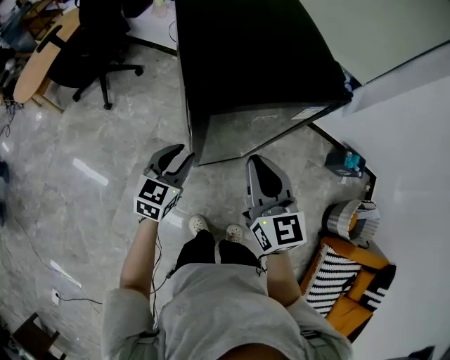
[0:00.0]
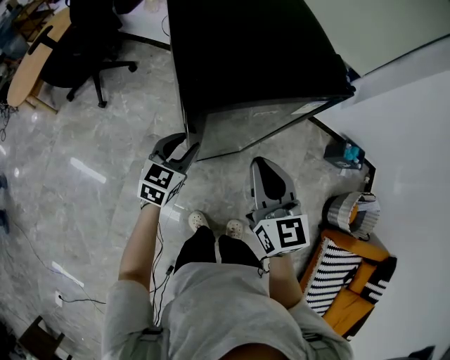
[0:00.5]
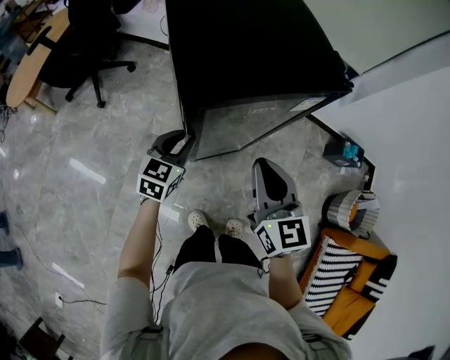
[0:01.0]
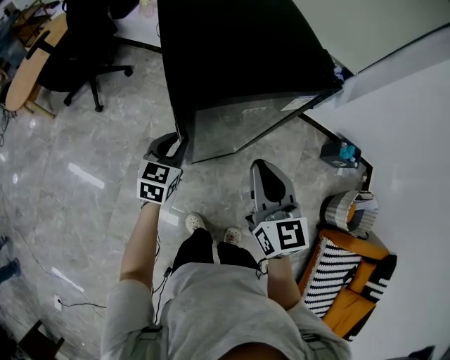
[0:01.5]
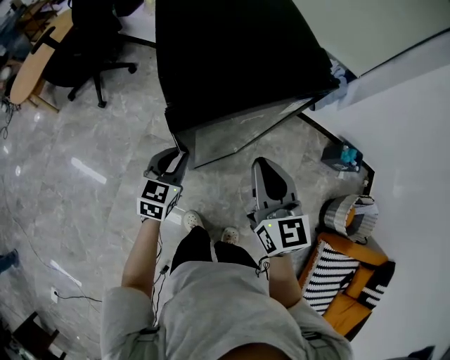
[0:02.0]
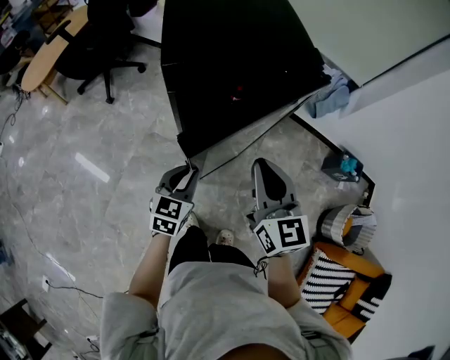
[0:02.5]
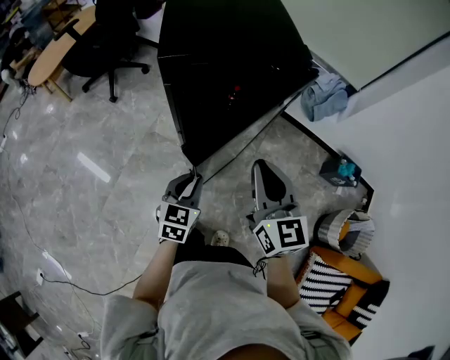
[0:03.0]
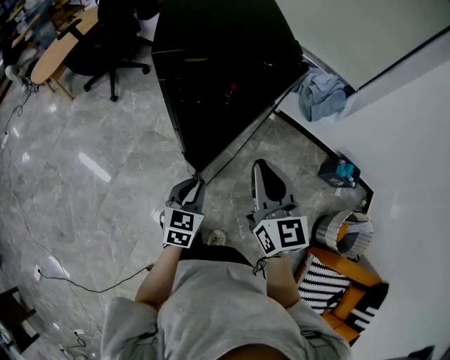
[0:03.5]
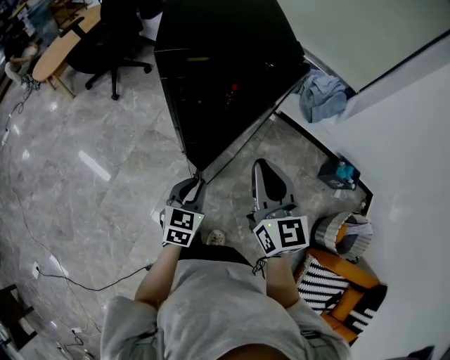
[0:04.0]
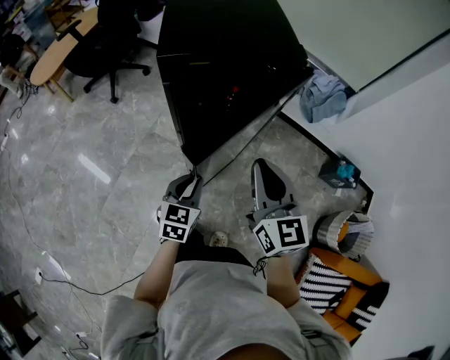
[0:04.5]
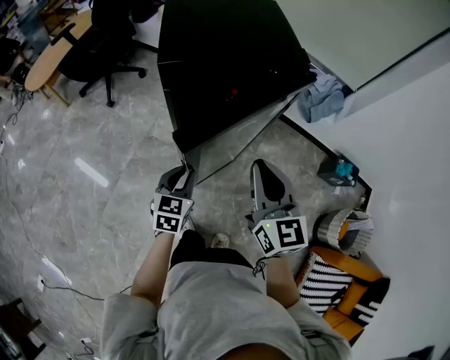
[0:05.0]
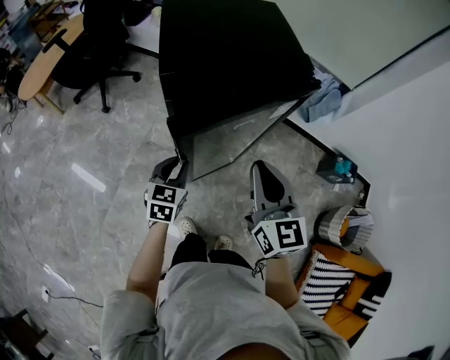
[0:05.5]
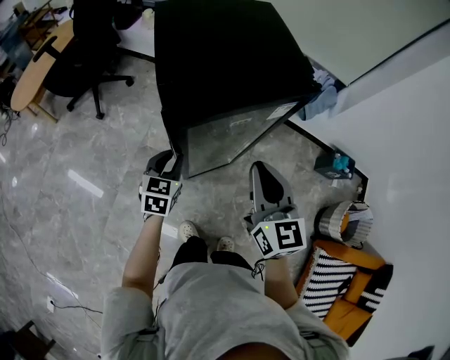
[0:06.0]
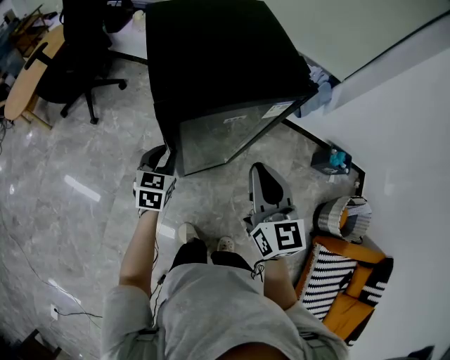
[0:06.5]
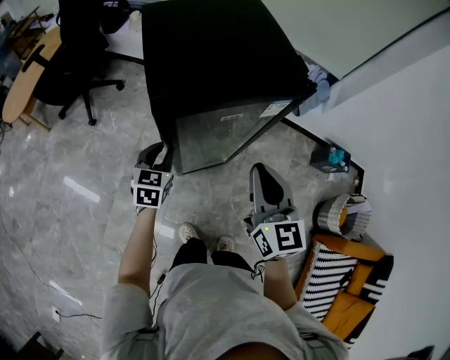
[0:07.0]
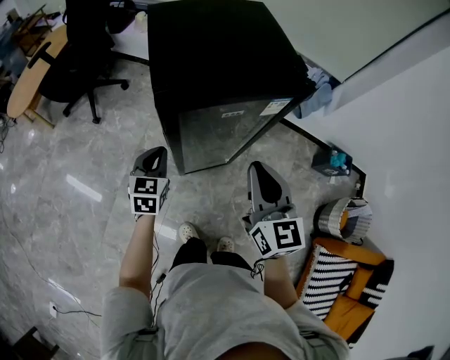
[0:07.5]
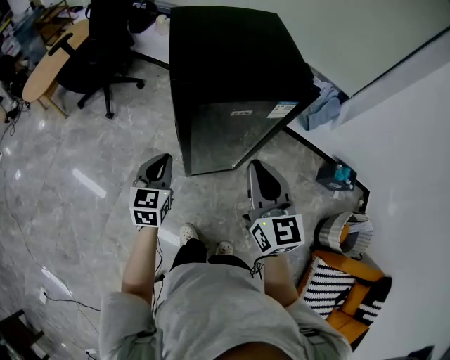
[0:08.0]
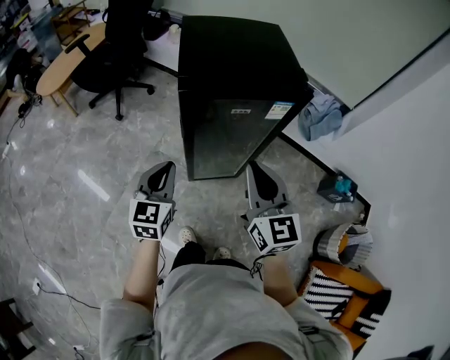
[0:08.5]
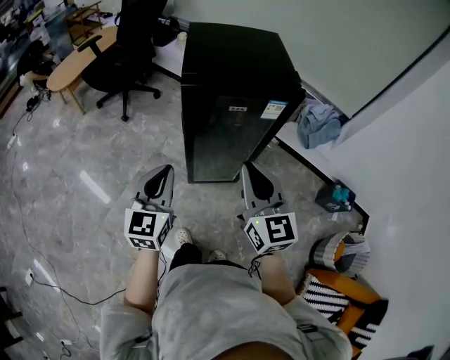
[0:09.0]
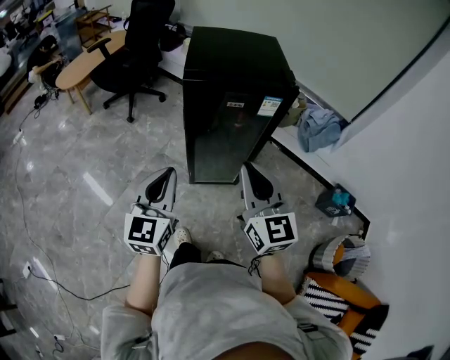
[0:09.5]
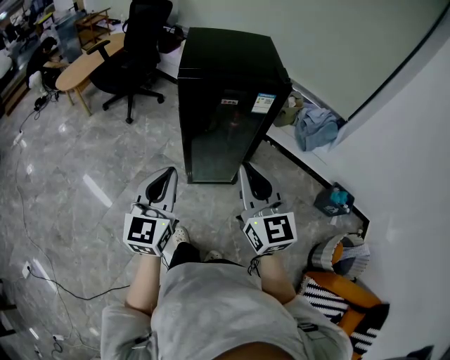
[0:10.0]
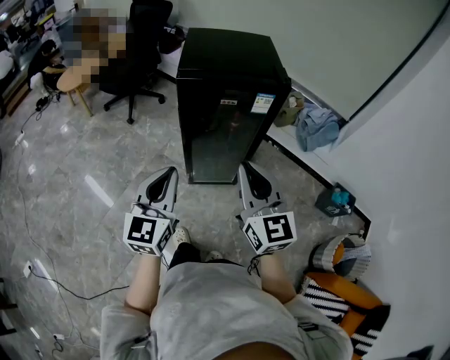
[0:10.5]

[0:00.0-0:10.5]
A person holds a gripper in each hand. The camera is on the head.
0:00.0 to 0:02.0: The left gripper moves about 5 cm. The right gripper shifts some 5 cm to the right.
0:02.0 to 0:04.0: The left gripper is displaced backward and to the right by roughly 20 cm. Meanwhile the right gripper goes roughly 10 cm backward and to the right.
0:04.0 to 0:06.5: The left gripper heads forward and to the left, covering some 25 cm. Meanwhile the right gripper moves forward and to the left, some 10 cm.
0:06.5 to 0:08.5: The left gripper goes about 20 cm backward and upward, and swivels about 20 degrees. The right gripper moves backward, roughly 5 cm.
0:08.5 to 0:10.5: The left gripper is displaced backward and upward by approximately 20 cm. The right gripper goes some 10 cm backward.

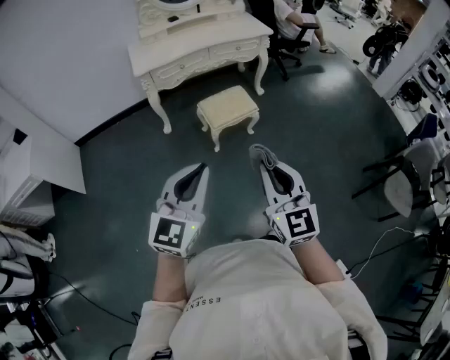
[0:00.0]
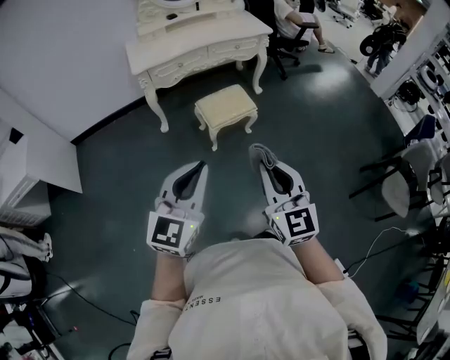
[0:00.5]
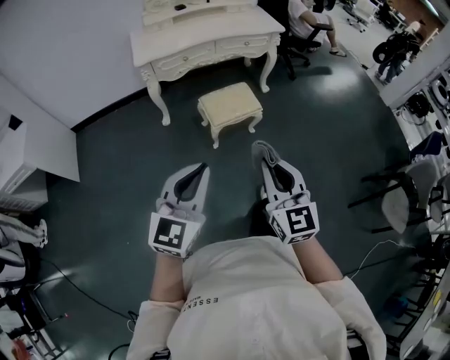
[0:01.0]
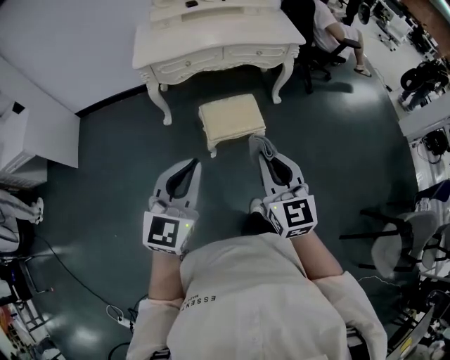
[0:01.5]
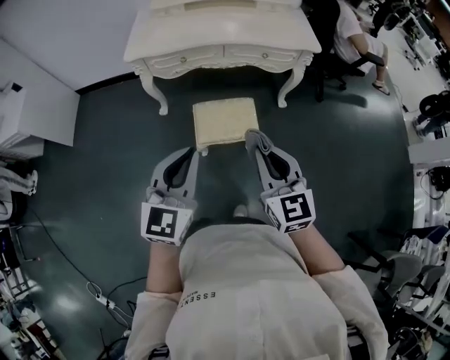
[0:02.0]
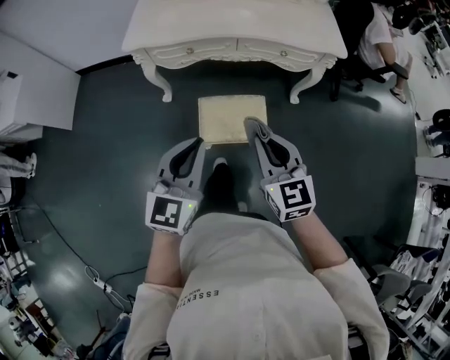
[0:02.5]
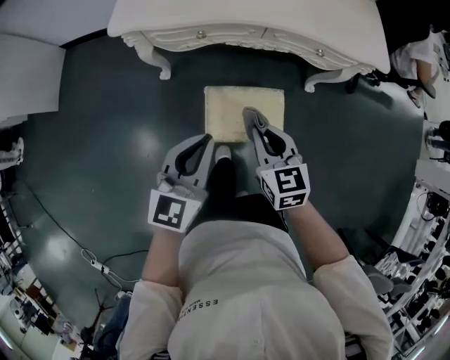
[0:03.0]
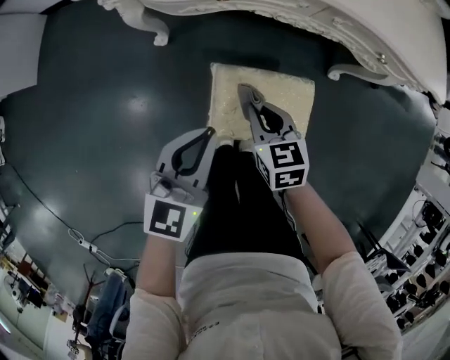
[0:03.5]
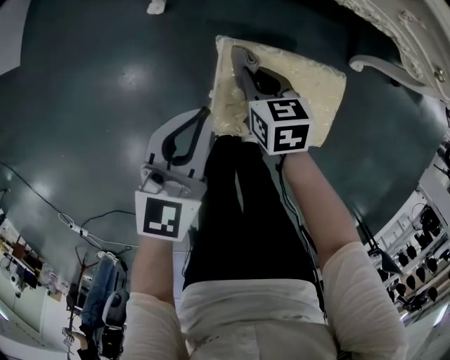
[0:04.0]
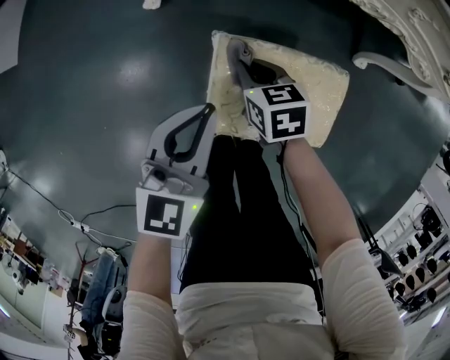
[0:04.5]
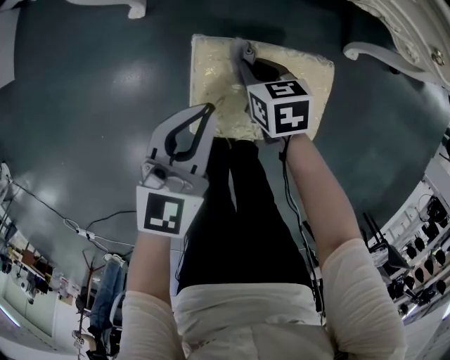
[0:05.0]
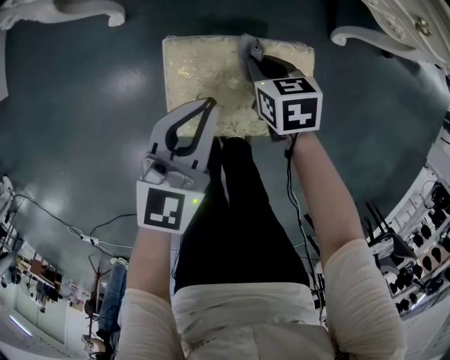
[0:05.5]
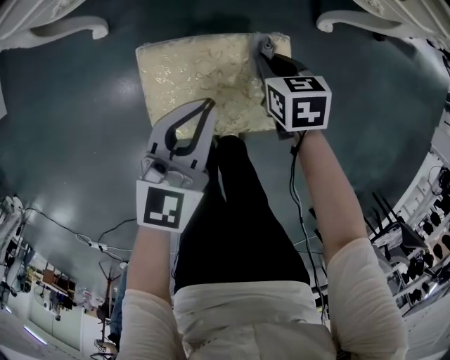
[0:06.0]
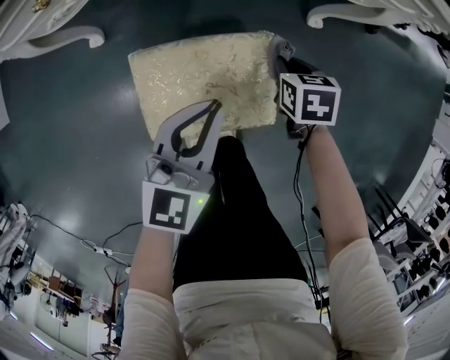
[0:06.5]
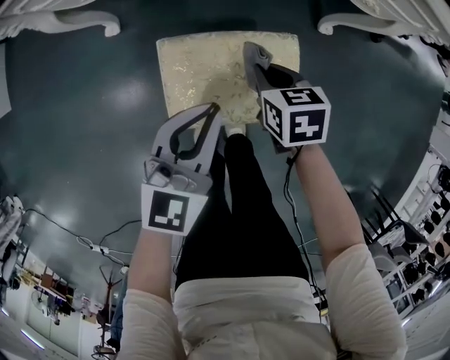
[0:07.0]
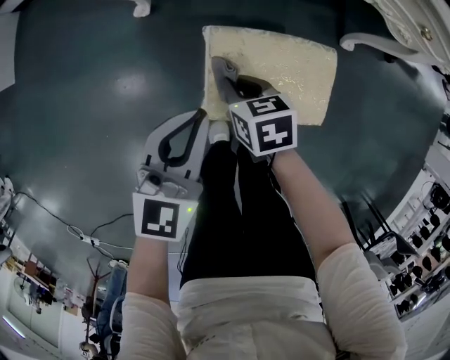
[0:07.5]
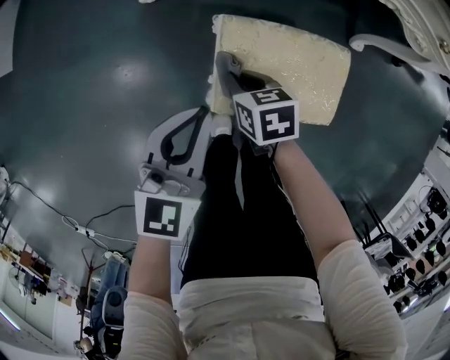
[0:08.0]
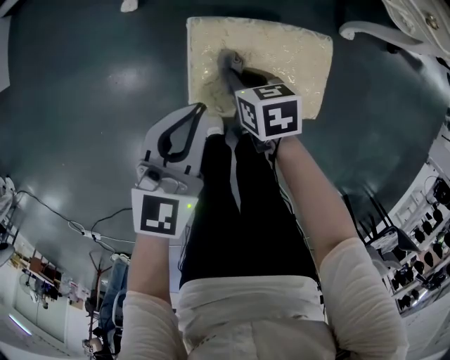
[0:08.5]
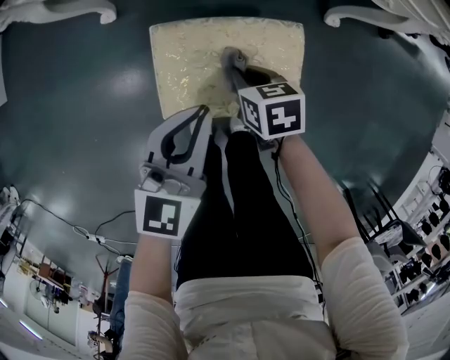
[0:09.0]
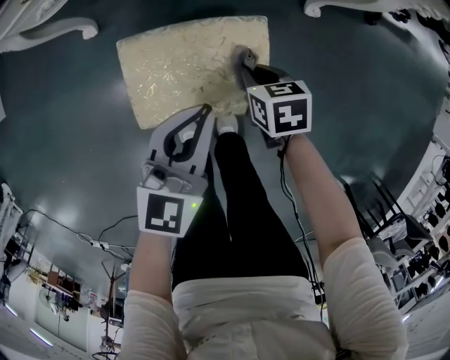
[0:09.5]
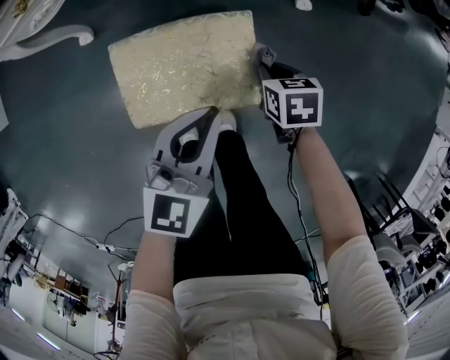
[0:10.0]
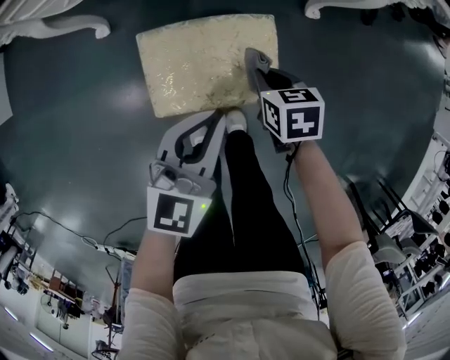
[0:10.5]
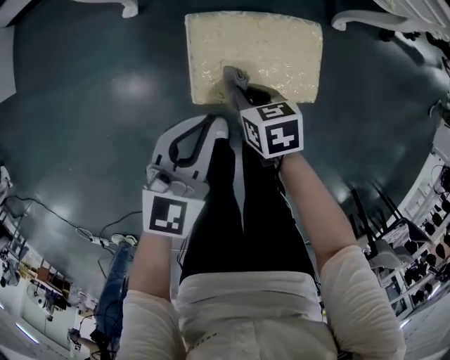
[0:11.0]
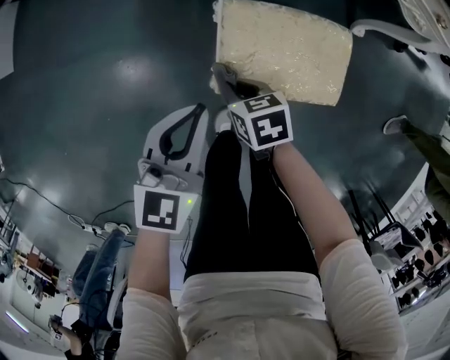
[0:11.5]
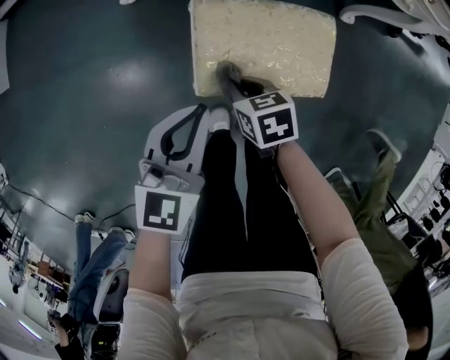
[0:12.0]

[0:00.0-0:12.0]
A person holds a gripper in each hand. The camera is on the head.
0:00.0 to 0:02.0: The grippers both shift forward by about 40 cm. The right gripper turns by roughly 20 degrees. Meanwhile the left gripper swivels roughly 20 degrees.
0:02.0 to 0:04.0: Both grippers travel together downward and forward, some 60 cm. The right gripper points its fingers roughly 40 degrees further downward.
0:04.0 to 0:06.0: The grippers both shift to the right by about 20 cm.
0:06.0 to 0:08.0: The left gripper shifts by approximately 20 cm, while the right gripper changes place by about 25 cm.
0:08.0 to 0:10.0: The grippers both shift to the right by some 30 cm.
0:10.0 to 0:12.0: Both grippers move to the left, some 25 cm.

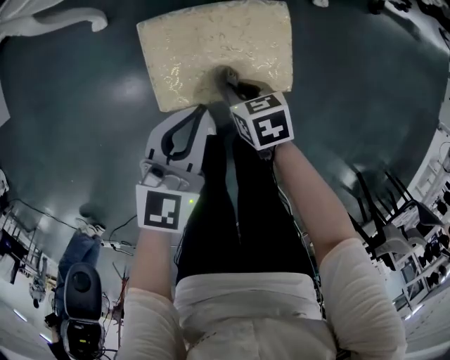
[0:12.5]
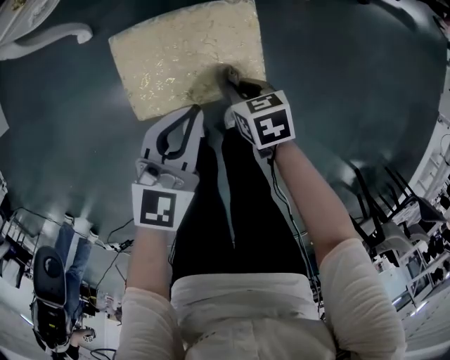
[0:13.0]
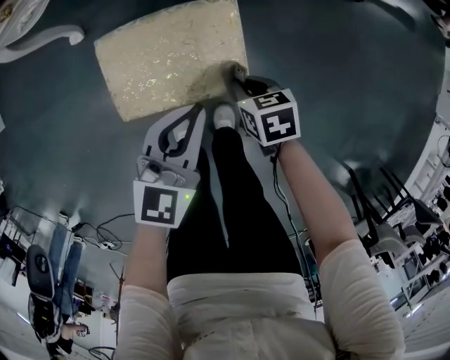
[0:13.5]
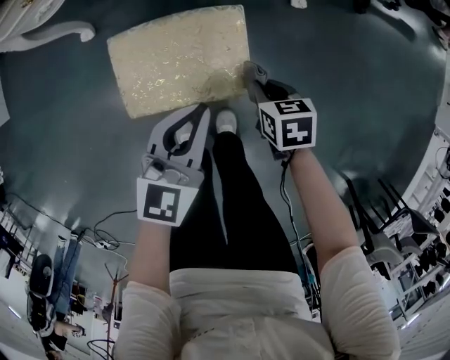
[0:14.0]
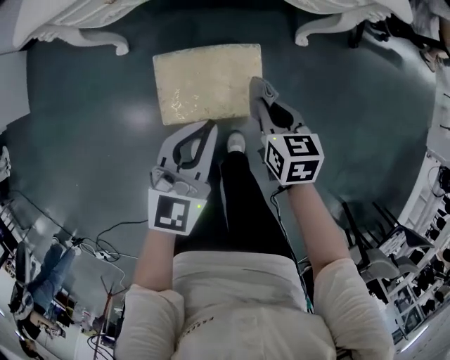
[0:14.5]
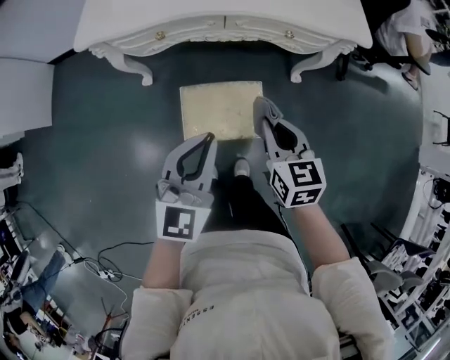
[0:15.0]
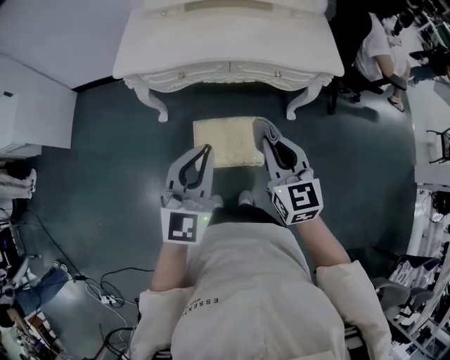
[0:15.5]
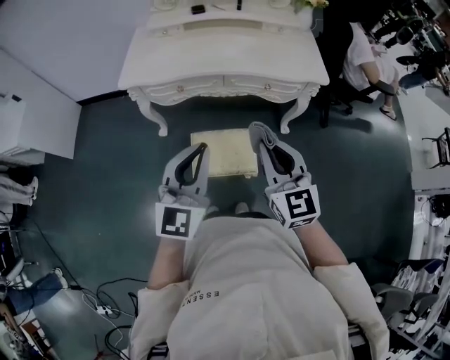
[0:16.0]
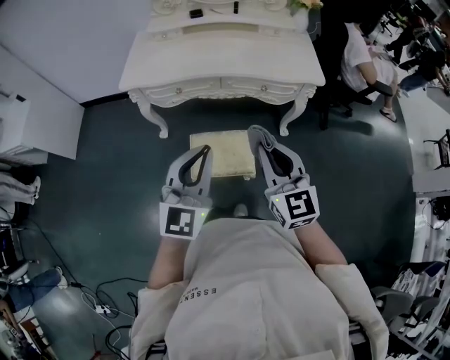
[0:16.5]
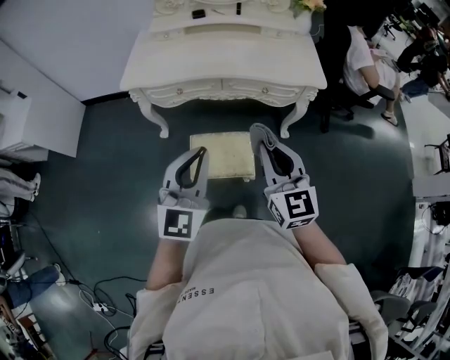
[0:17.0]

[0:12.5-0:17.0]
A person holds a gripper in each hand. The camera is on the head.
0:12.5 to 0:14.5: The right gripper moves upward and to the right, some 25 cm, and changes its angle by some 20 degrees. The left gripper goes some 15 cm upward and to the right.
0:14.5 to 0:17.0: The grippers both shift upward by some 35 cm. The right gripper points its fingers some 40 degrees further upward. The left gripper changes its angle by approximately 30 degrees.
